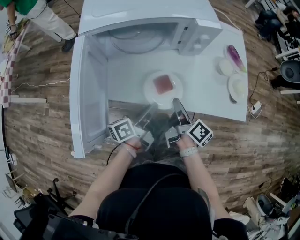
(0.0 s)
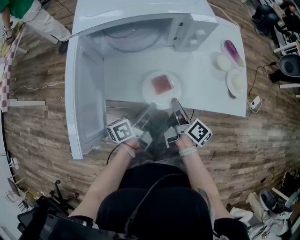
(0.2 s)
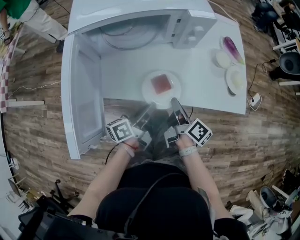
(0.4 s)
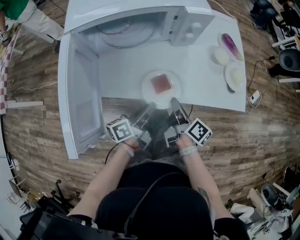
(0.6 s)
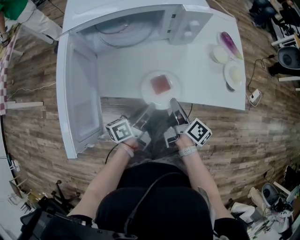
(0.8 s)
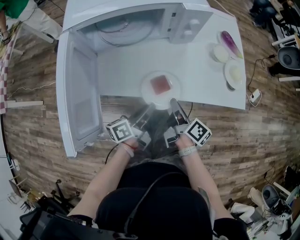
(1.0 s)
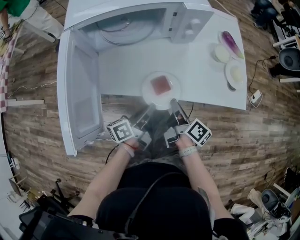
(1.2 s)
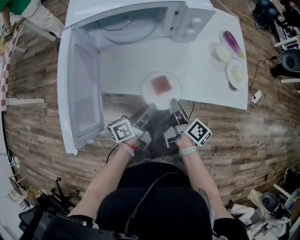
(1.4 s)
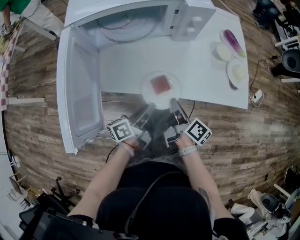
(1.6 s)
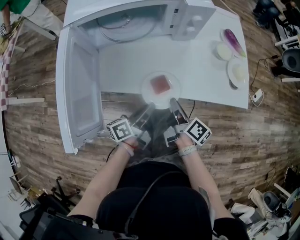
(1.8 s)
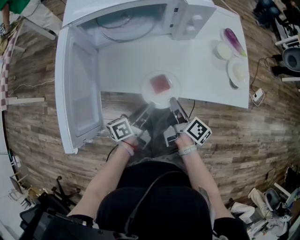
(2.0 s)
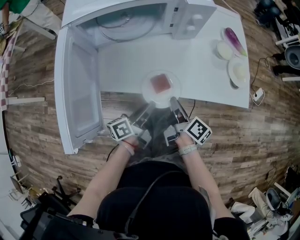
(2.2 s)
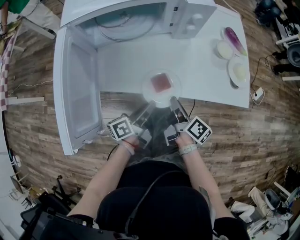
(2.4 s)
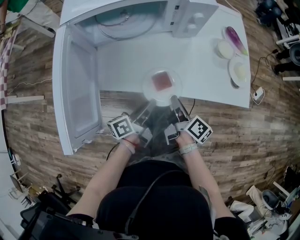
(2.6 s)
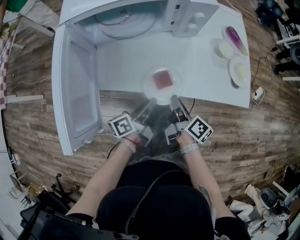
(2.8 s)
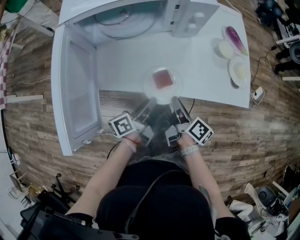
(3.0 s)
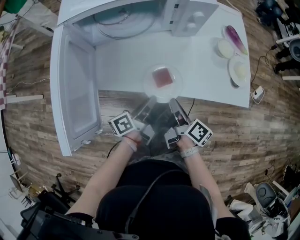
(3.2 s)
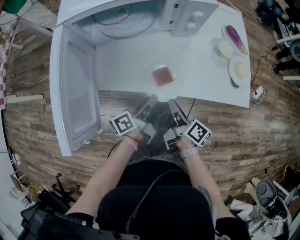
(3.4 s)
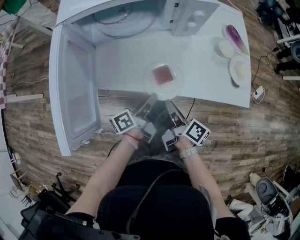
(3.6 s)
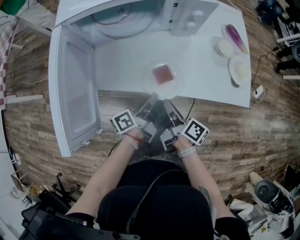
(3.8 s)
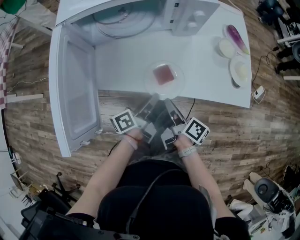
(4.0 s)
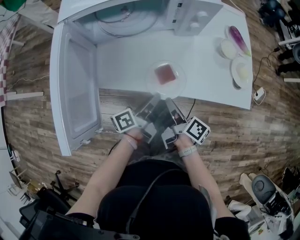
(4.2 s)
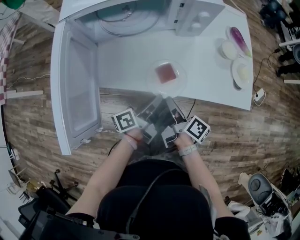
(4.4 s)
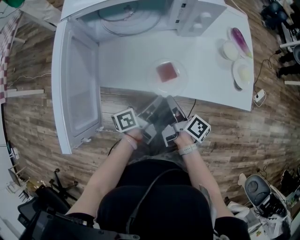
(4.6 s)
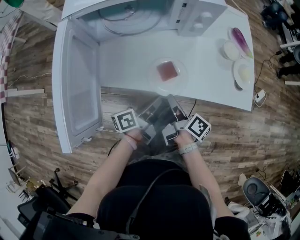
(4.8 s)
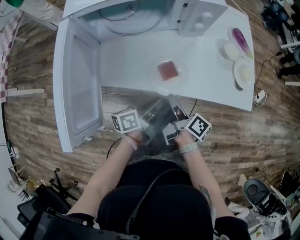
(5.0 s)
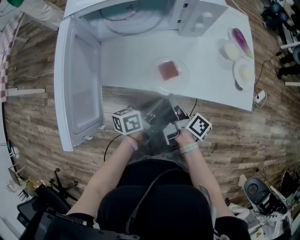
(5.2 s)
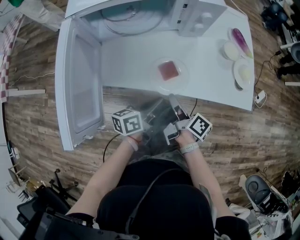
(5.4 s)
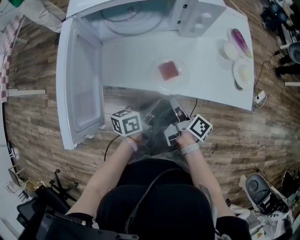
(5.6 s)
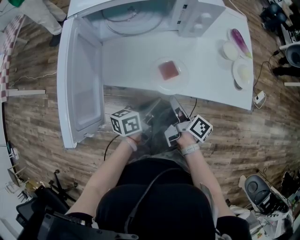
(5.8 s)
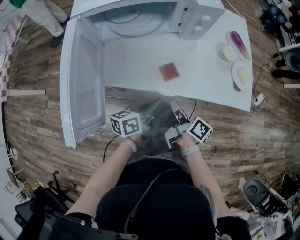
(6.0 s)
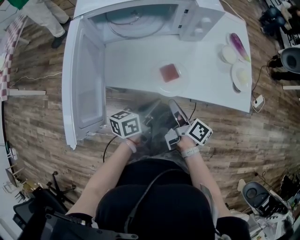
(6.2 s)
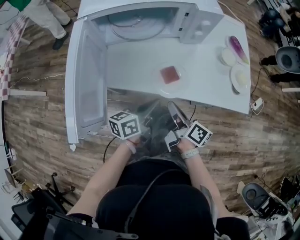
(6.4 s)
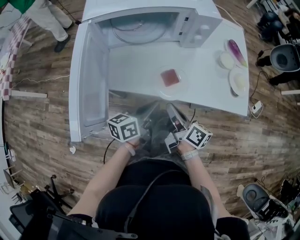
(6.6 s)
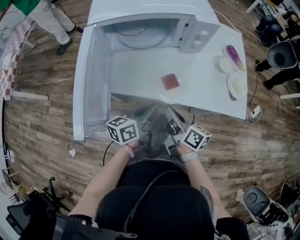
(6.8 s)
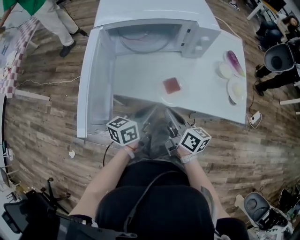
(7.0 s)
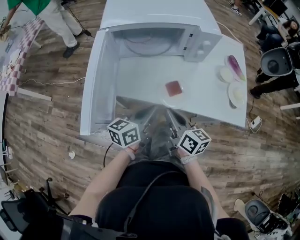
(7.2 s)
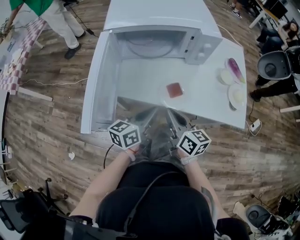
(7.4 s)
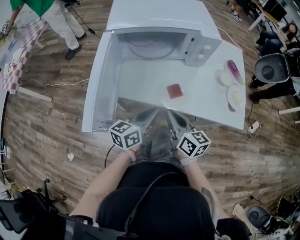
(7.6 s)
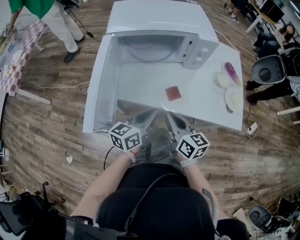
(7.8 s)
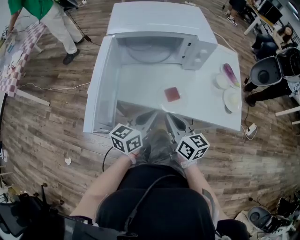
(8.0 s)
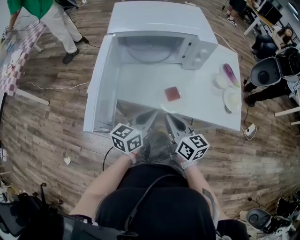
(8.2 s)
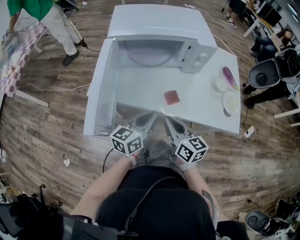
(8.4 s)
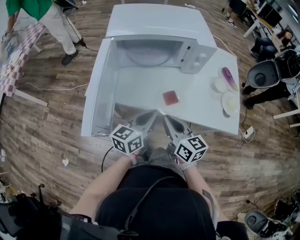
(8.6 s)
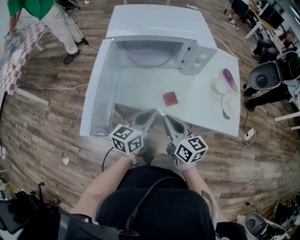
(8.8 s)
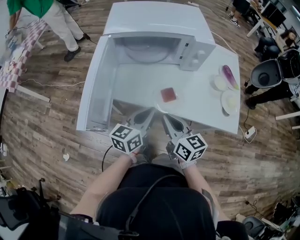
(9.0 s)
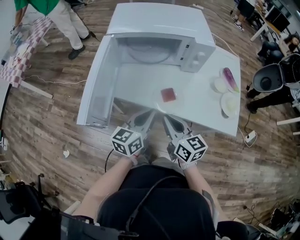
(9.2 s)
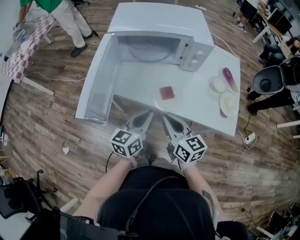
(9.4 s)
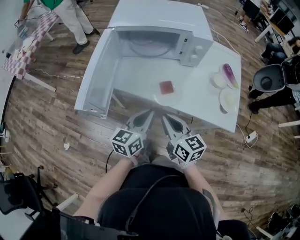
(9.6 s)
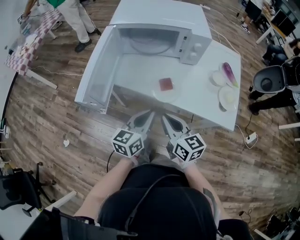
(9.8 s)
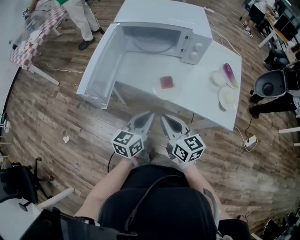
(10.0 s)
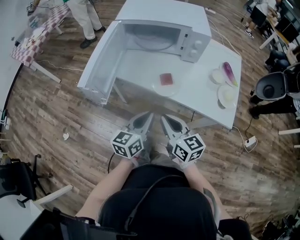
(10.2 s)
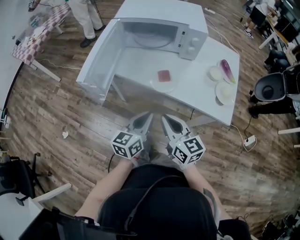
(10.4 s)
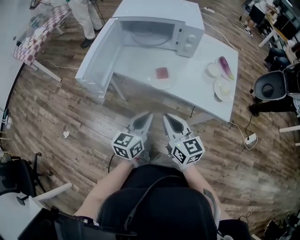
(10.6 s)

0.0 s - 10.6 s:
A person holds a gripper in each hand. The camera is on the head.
0.0 s - 1.6 s: The left gripper shifts by approximately 5 cm. The right gripper ends up some 5 cm from where it was.
1.6 s - 4.6 s: The grippers move only a little.
4.6 s - 6.0 s: The left gripper swivels about 20 degrees.
6.0 s - 7.6 s: The right gripper goes approximately 10 cm upward and to the left, and rolls counterclockwise, seen from behind, by approximately 50 degrees. The left gripper heads upward, covering approximately 10 cm, and rotates about 20 degrees.
7.6 s - 9.0 s: There are only small adjustments of the grippers.
9.0 s - 10.6 s: The left gripper travels backward by roughly 15 cm. The right gripper is displaced backward and to the right by approximately 15 cm.

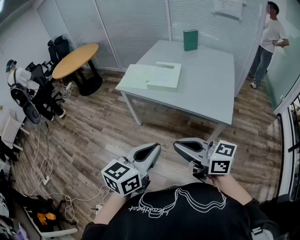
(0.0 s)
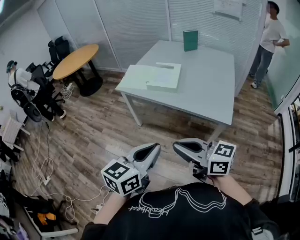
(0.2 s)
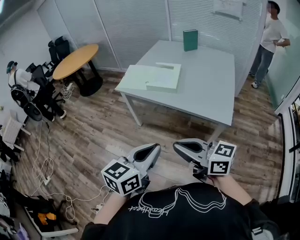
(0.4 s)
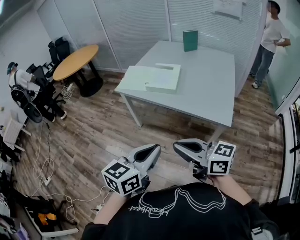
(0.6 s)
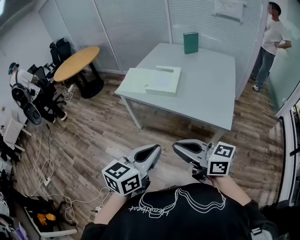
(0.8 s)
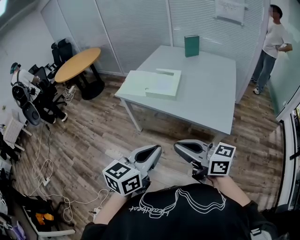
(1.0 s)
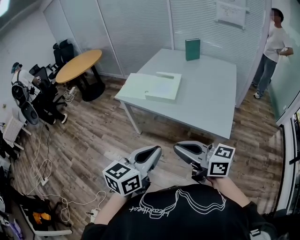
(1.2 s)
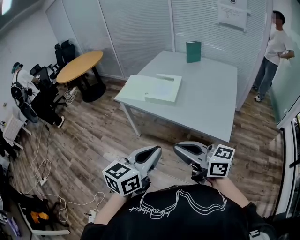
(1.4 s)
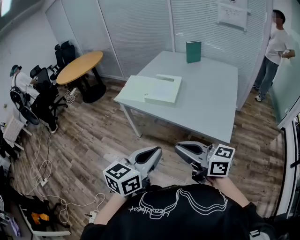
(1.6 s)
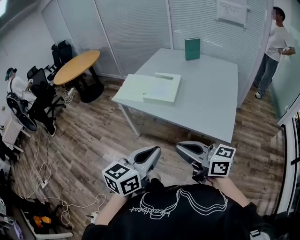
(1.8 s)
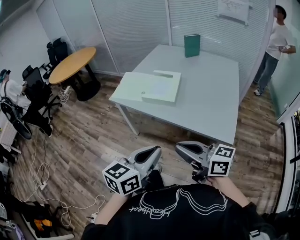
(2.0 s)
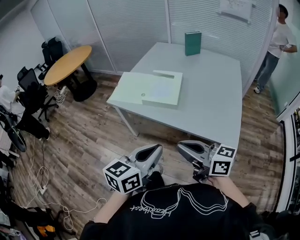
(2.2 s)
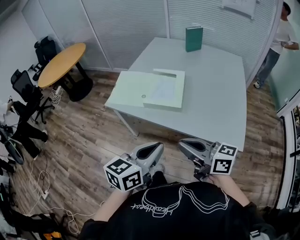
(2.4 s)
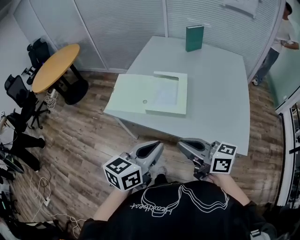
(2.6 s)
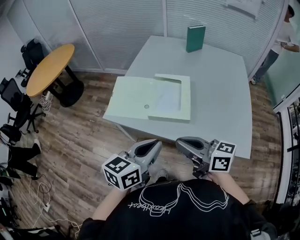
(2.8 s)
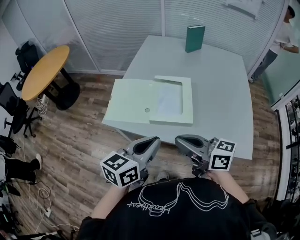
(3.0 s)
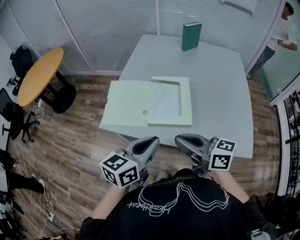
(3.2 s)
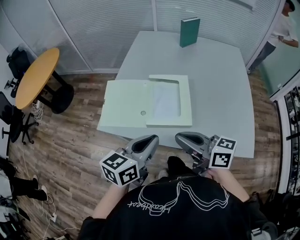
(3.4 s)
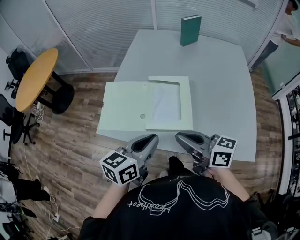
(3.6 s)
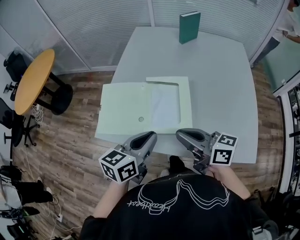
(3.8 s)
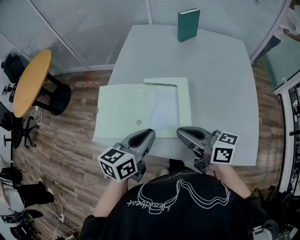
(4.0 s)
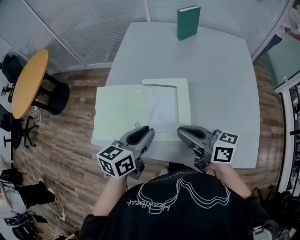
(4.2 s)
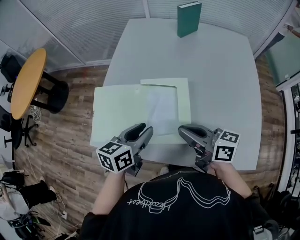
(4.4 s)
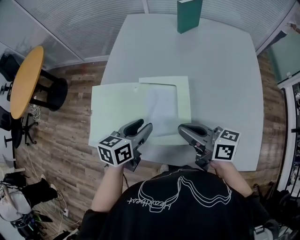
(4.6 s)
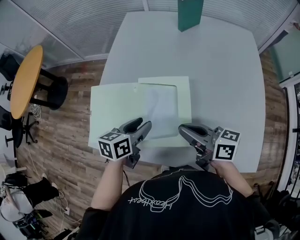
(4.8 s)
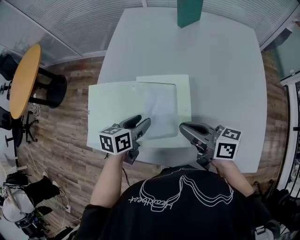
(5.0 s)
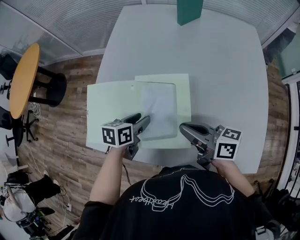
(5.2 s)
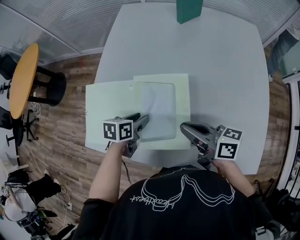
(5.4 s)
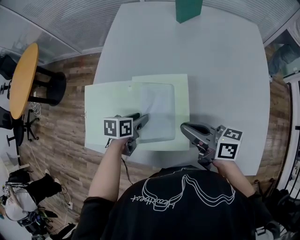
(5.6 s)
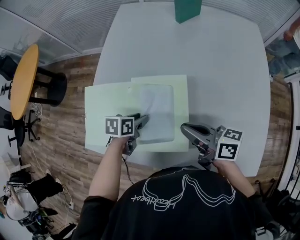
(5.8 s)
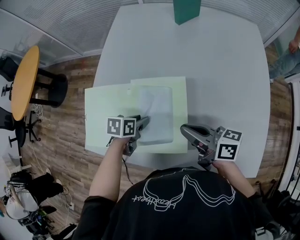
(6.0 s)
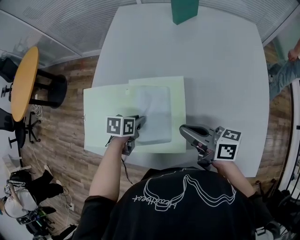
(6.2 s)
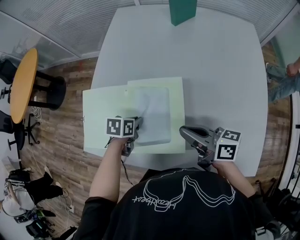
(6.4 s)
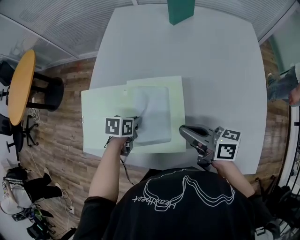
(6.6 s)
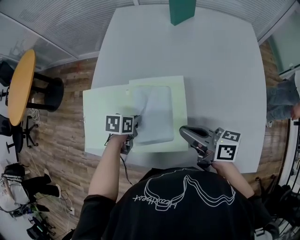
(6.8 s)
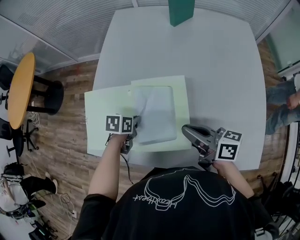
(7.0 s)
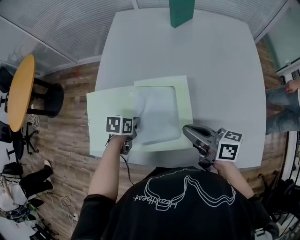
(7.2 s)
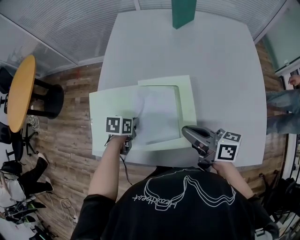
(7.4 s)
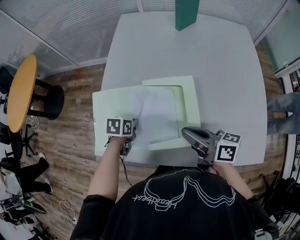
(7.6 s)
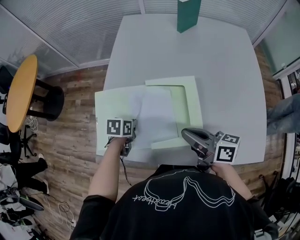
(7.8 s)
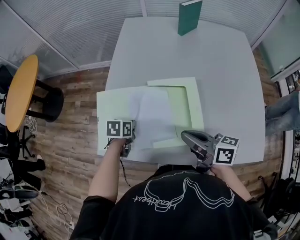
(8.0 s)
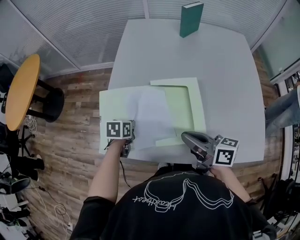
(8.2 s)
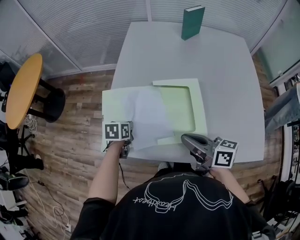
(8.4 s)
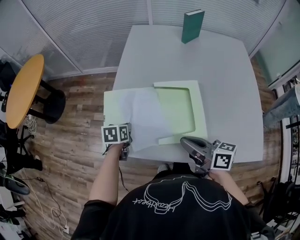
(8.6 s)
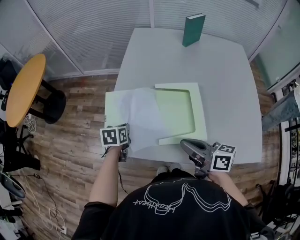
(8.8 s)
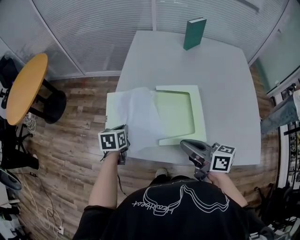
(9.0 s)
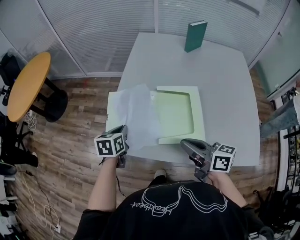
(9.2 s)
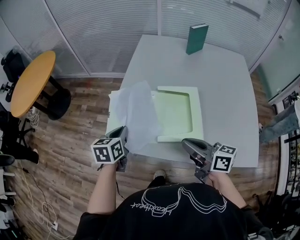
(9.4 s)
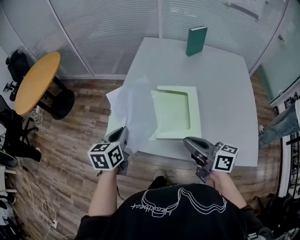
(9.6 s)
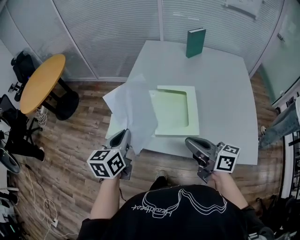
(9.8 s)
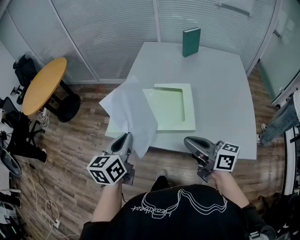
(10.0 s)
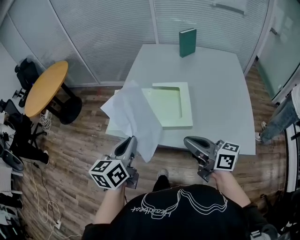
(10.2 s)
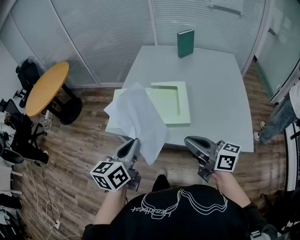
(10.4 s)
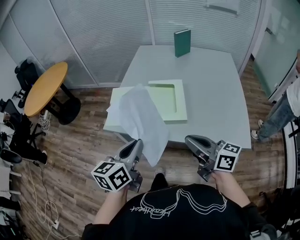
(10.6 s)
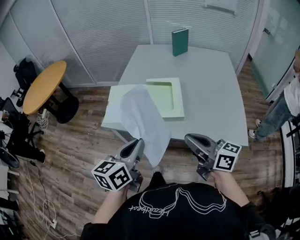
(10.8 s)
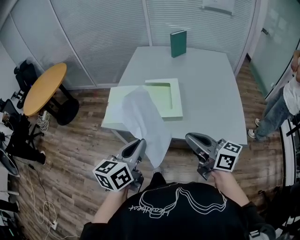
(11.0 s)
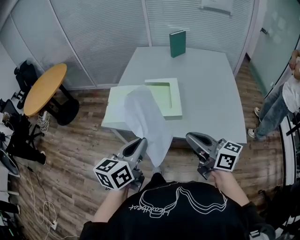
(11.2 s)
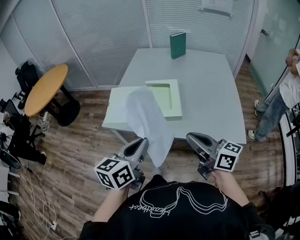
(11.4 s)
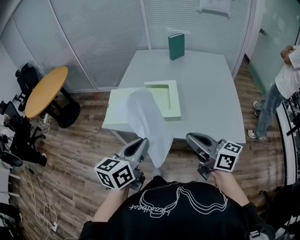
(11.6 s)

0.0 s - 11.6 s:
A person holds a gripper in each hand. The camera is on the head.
0.0 s - 1.4 s: The right gripper travels to the right and forward by roughly 10 cm; the left gripper heads to the right, covering approximately 5 cm.
1.4 s - 2.8 s: Both grippers travel together forward, about 35 cm.
2.8 s - 4.4 s: Both grippers move forward, about 25 cm. The left gripper opens up.
4.4 s - 5.8 s: The right gripper shifts approximately 10 cm forward and downward, while the left gripper goes about 20 cm downward and forward, and swivels approximately 30 degrees.
5.8 s - 7.2 s: The left gripper heads to the left, covering about 5 cm, and closes its fingers.
7.2 s - 8.8 s: The right gripper is displaced to the left and backward by approximately 15 cm; the left gripper goes about 15 cm to the left.
8.8 s - 10.2 s: The left gripper is displaced backward and upward by approximately 35 cm, and points its fingers approximately 40 degrees further upward; the right gripper goes approximately 20 cm backward and upward.
10.2 s - 11.6 s: The left gripper goes some 15 cm backward and to the right, while the right gripper travels backward by roughly 10 cm.

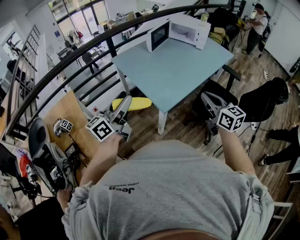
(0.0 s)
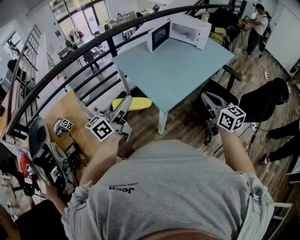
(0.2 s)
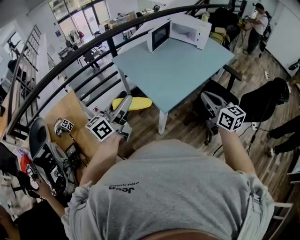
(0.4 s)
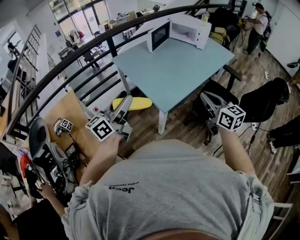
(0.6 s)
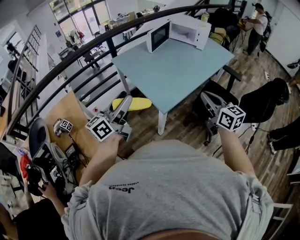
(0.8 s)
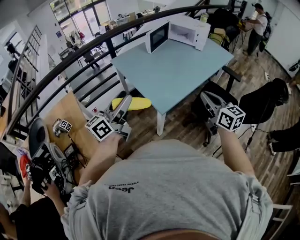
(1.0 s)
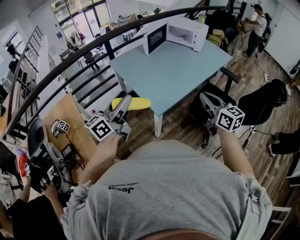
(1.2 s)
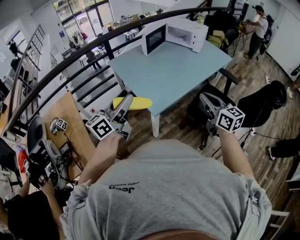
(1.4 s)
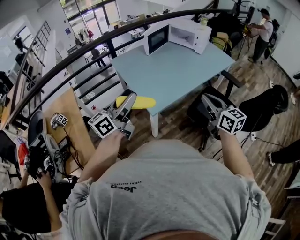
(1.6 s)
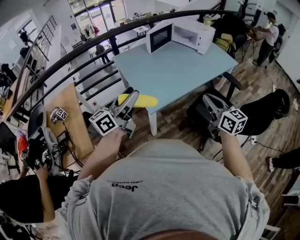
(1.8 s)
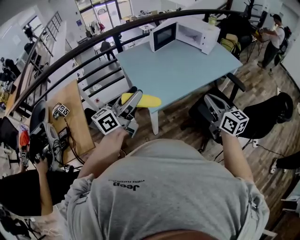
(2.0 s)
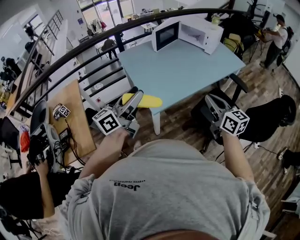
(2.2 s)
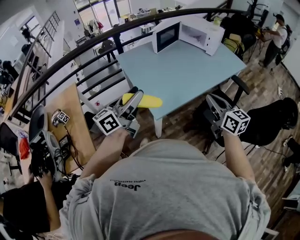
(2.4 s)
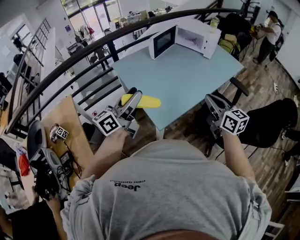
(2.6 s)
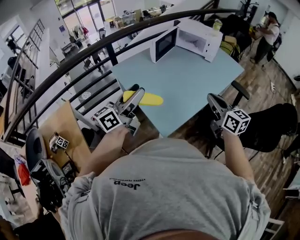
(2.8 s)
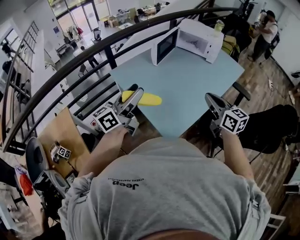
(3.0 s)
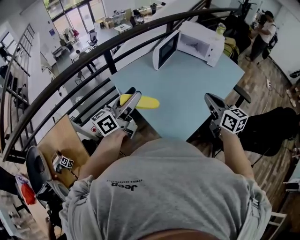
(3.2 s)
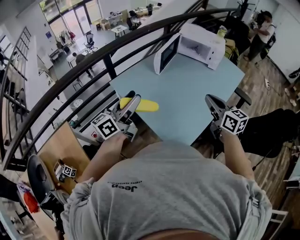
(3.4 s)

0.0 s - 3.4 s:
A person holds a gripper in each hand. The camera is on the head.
0.0 s - 1.6 s: Both grippers travel together to the right, about 10 cm.
1.6 s - 3.4 s: The grippers both shift forward and to the left by about 35 cm.
